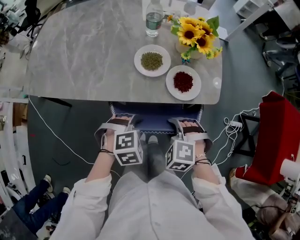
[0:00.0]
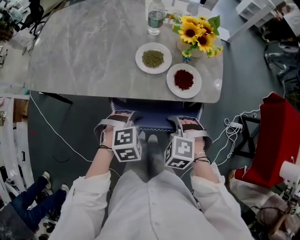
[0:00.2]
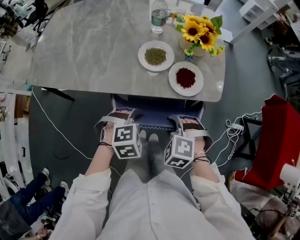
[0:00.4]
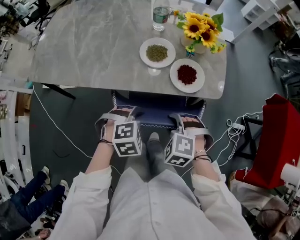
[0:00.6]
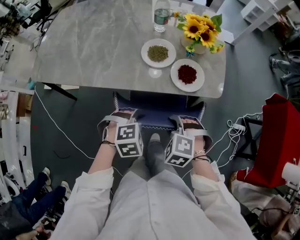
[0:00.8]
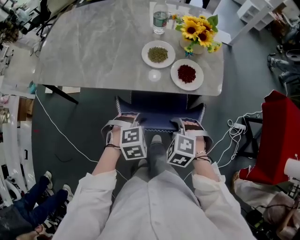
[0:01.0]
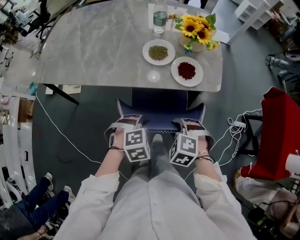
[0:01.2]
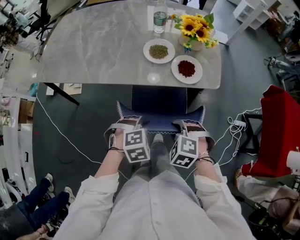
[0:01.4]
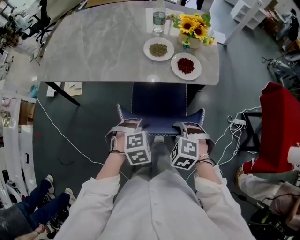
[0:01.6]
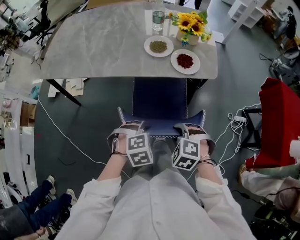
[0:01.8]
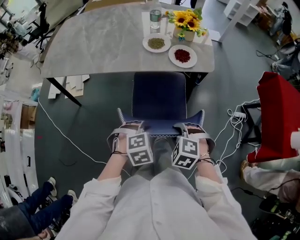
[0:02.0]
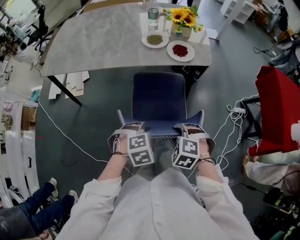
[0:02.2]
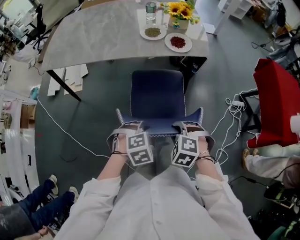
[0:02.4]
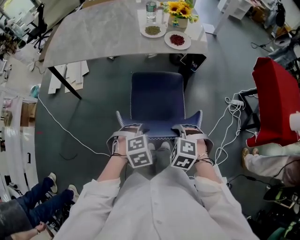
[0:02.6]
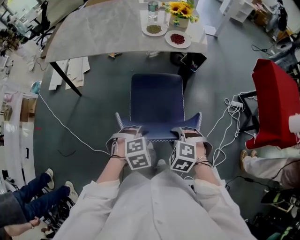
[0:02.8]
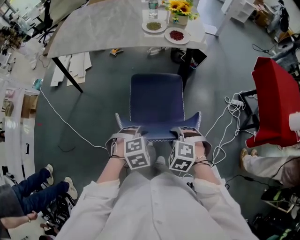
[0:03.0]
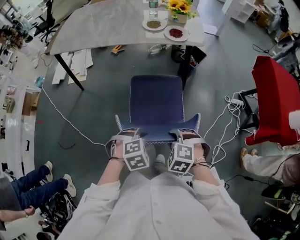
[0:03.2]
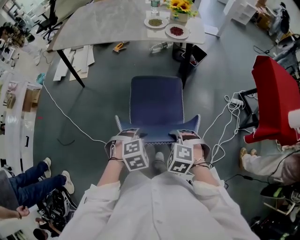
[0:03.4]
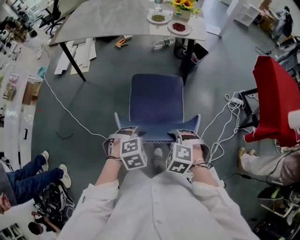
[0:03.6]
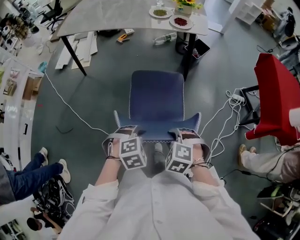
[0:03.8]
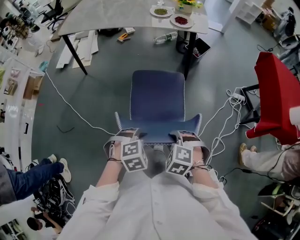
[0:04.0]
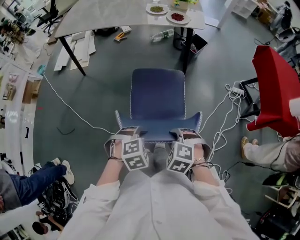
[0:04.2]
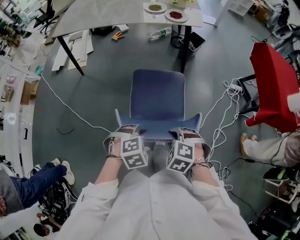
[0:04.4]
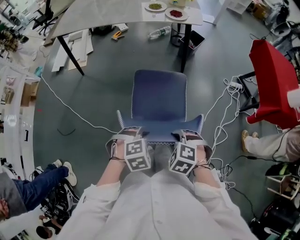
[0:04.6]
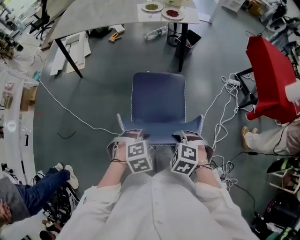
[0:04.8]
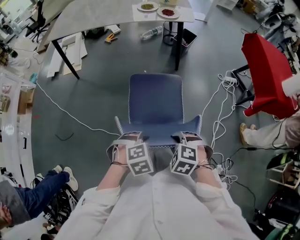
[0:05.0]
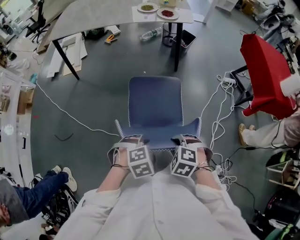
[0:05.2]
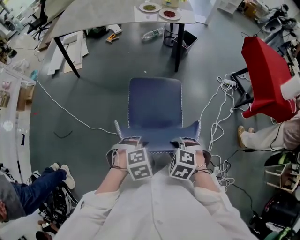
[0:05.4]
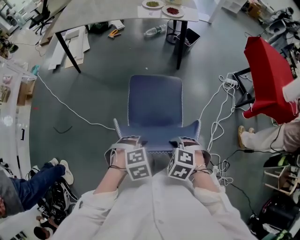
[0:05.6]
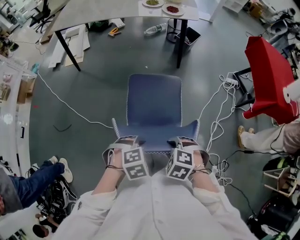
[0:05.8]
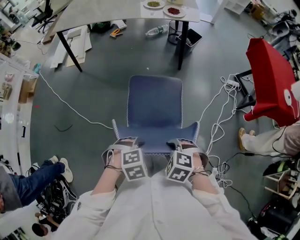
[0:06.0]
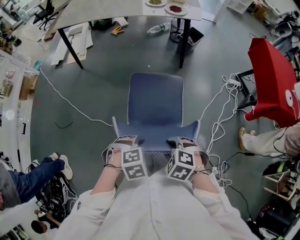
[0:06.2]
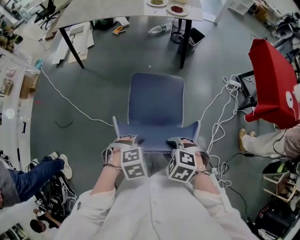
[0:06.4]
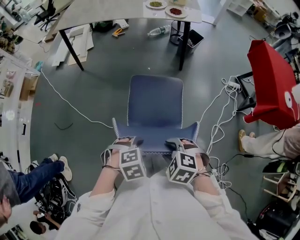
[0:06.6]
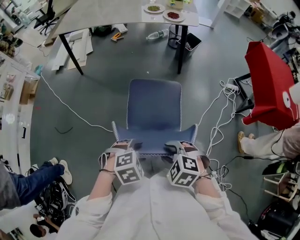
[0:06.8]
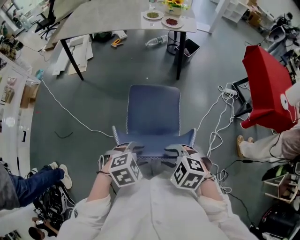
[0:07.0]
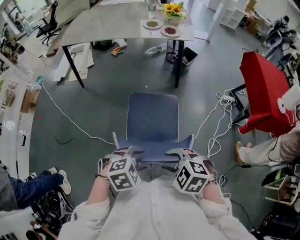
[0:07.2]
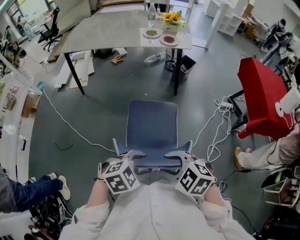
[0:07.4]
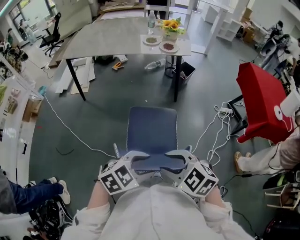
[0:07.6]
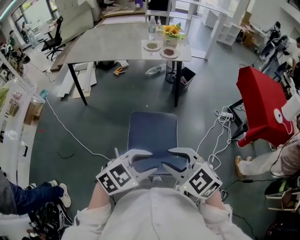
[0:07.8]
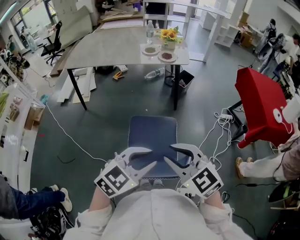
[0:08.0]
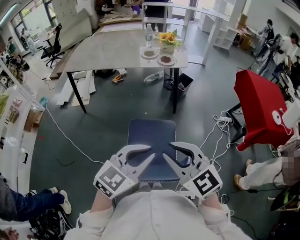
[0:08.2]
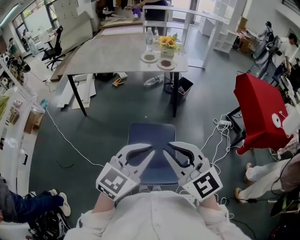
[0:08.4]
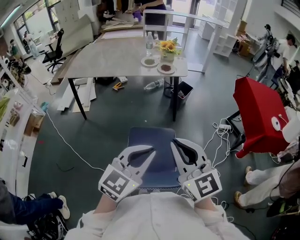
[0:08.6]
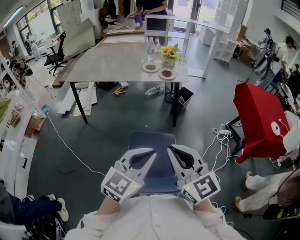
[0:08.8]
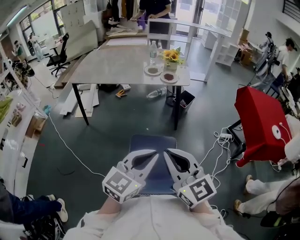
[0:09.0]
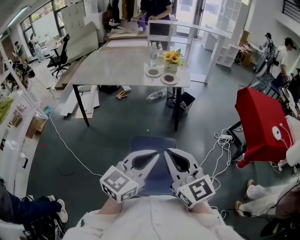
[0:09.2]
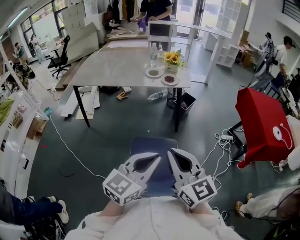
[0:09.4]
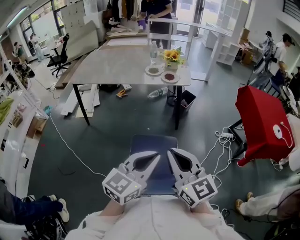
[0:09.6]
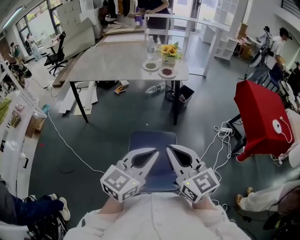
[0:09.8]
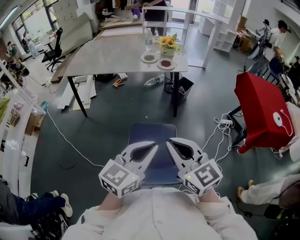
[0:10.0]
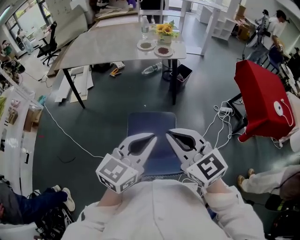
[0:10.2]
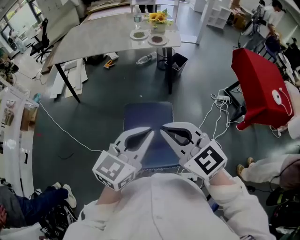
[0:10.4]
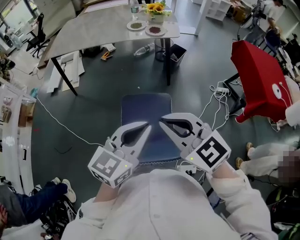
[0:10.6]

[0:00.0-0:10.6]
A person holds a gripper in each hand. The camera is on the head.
0.0 to 1.6 s: The two grippers go about 15 cm backward.
1.6 to 3.0 s: The grippers both shift backward by about 25 cm.
3.0 to 4.6 s: The grippers both shift backward by roughly 20 cm.
4.6 to 6.0 s: The left gripper shifts by about 10 cm. The right gripper changes place by some 10 cm.
6.0 to 7.6 s: Both grippers travel together upward, roughly 15 cm. The left gripper tips its fingers upward by some 30 degrees; the right gripper tips its fingers upward by about 30 degrees.
7.6 to 9.0 s: The grippers both shift upward by roughly 15 cm. The right gripper tips its fingers upward by about 40 degrees, and closes up. Meanwhile the left gripper tips its fingers upward by approximately 30 degrees, and closes.
9.0 to 10.6 s: The right gripper turns by about 20 degrees.

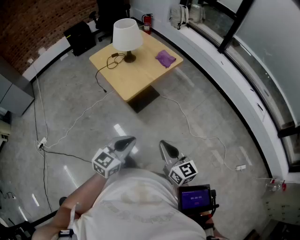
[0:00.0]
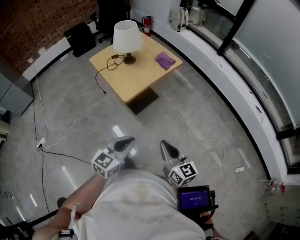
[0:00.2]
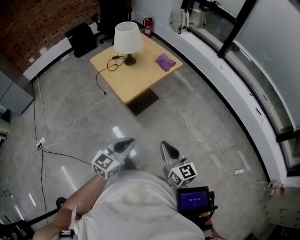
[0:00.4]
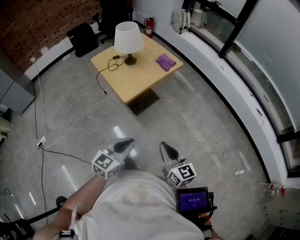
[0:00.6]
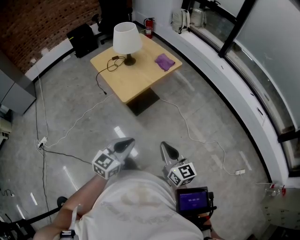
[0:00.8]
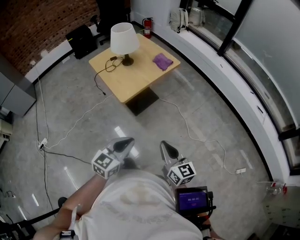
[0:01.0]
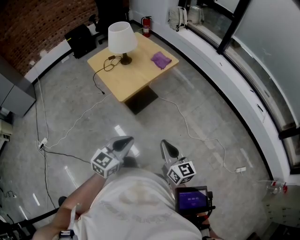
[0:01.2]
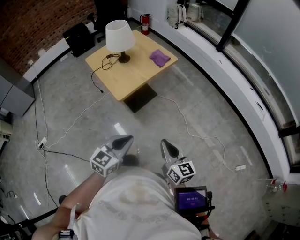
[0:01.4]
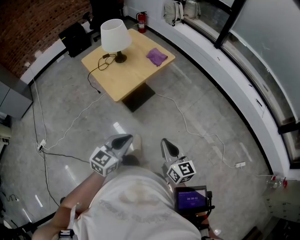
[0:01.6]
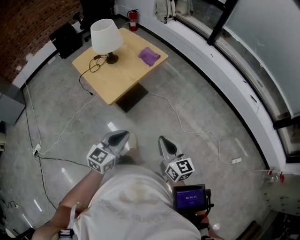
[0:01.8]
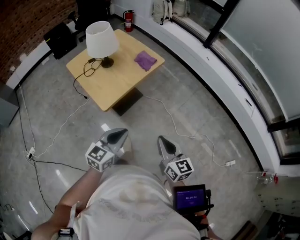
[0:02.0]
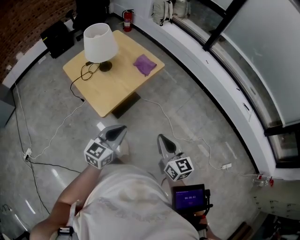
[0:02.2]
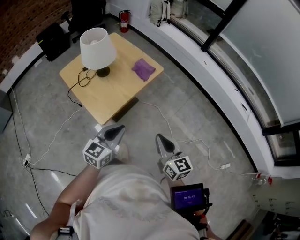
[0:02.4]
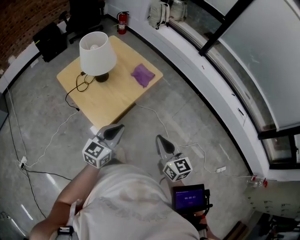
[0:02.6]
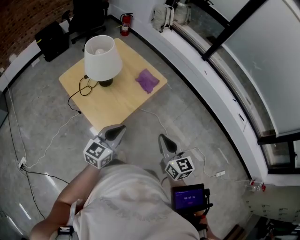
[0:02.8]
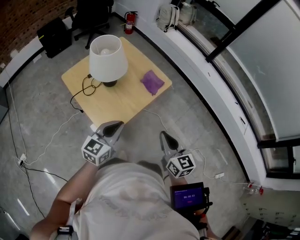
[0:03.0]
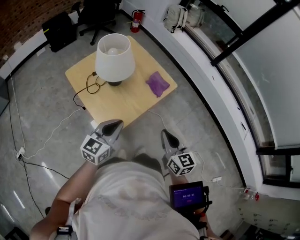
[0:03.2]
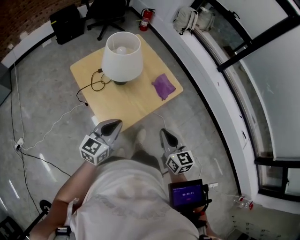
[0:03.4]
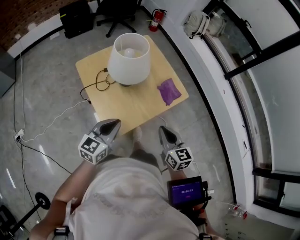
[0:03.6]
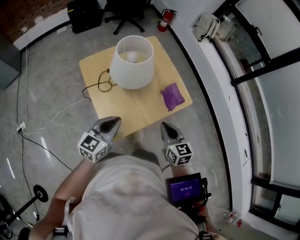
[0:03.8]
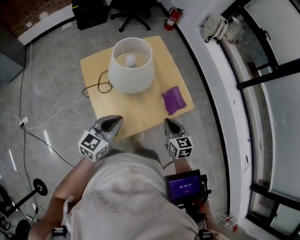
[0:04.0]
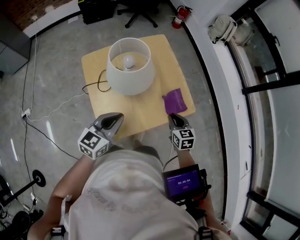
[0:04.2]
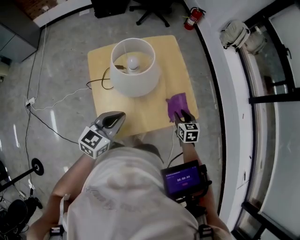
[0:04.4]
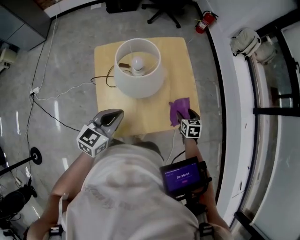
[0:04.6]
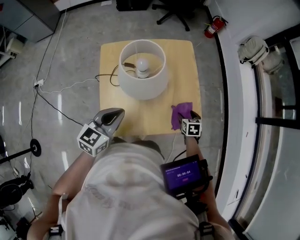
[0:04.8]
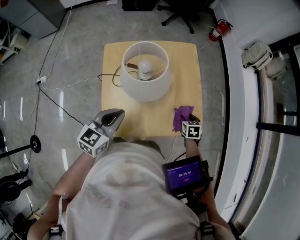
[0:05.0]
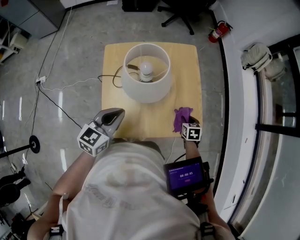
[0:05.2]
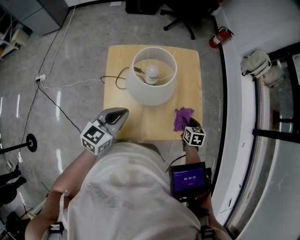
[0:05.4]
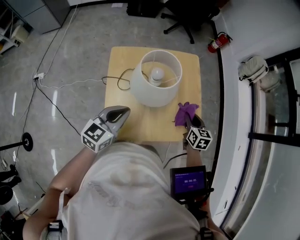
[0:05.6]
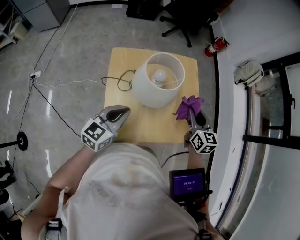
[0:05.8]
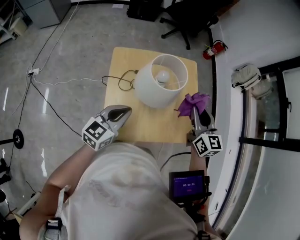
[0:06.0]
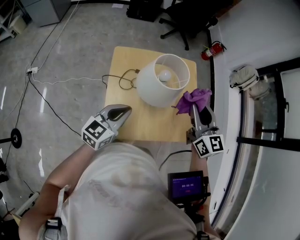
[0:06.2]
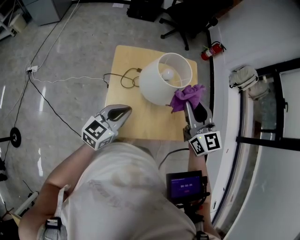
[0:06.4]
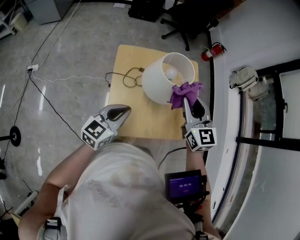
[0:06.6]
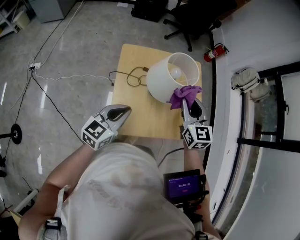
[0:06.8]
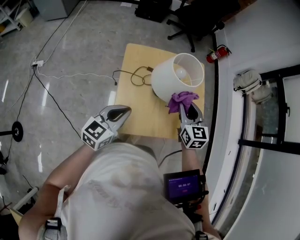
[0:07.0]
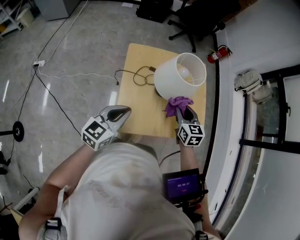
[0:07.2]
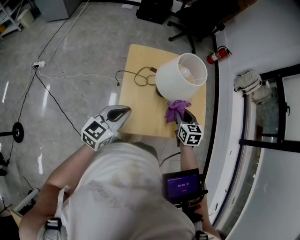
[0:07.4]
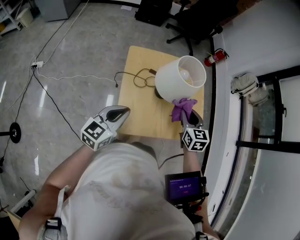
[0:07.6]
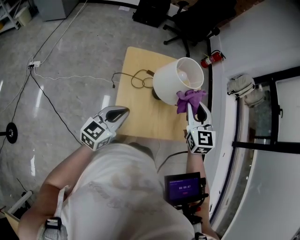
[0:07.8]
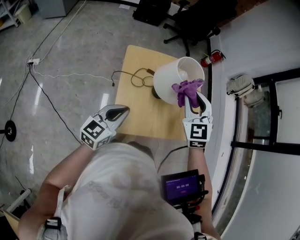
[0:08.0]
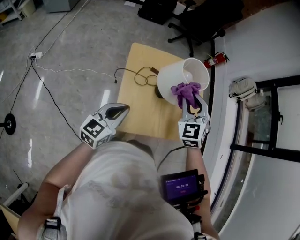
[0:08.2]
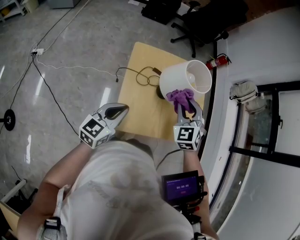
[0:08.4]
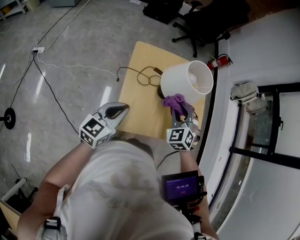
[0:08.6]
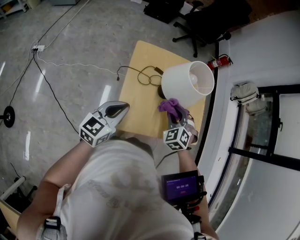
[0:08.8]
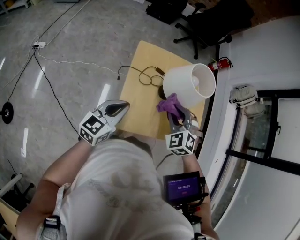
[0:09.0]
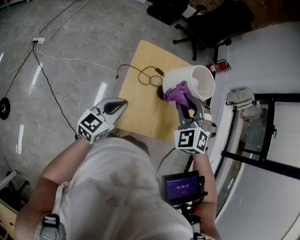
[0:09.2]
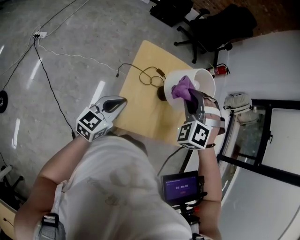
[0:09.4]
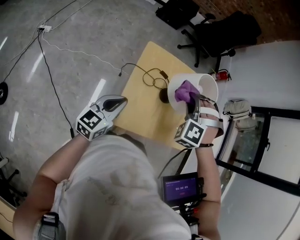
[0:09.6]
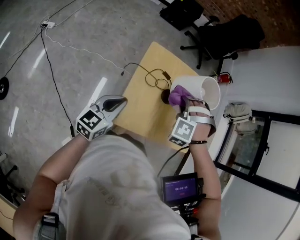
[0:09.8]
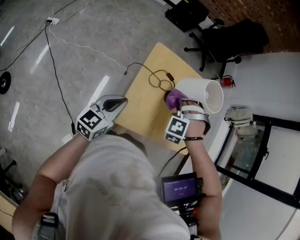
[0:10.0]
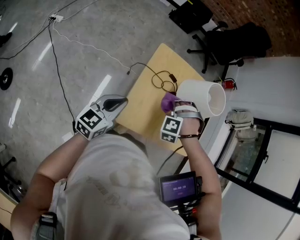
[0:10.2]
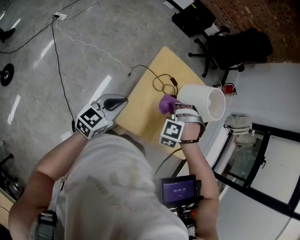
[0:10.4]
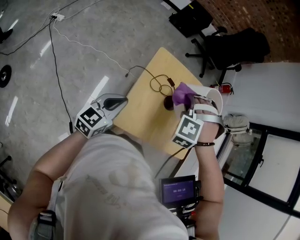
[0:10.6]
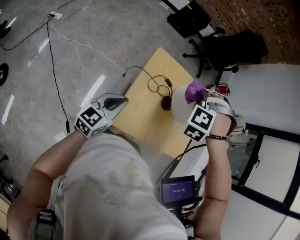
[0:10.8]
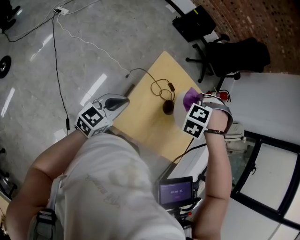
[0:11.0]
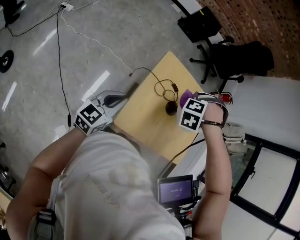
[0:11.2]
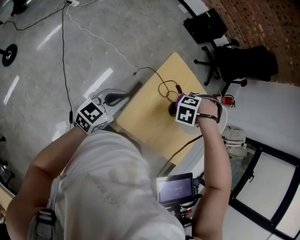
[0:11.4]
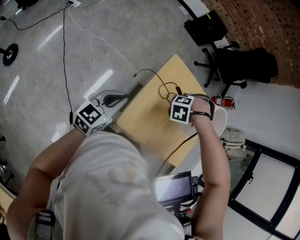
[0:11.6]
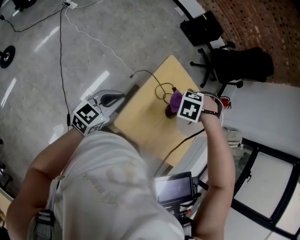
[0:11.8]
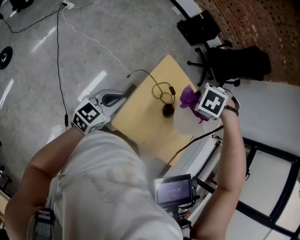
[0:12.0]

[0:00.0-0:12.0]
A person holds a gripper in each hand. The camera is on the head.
0.0 to 1.6 s: The right gripper heads to the right, covering about 5 cm.
1.6 to 3.0 s: Both grippers travel together forward, approximately 30 cm.
3.0 to 4.4 s: The left gripper shifts approximately 15 cm forward, and swivels approximately 30 degrees. Meanwhile the right gripper travels forward and downward by some 40 cm, points its fingers roughly 30 degrees further downward, and opens its fingers.
4.4 to 6.0 s: The left gripper goes some 5 cm to the left, while the right gripper shifts roughly 25 cm upward and to the left, tilts its fingers approximately 30 degrees upward, and opens, then closes again.
6.0 to 7.6 s: The left gripper goes roughly 10 cm to the left and backward; the right gripper moves up and down over some 20 cm, changing direction 2 times, and swivels approximately 20 degrees.
7.6 to 9.0 s: The right gripper moves up and down over about 20 cm, changing direction 2 times, and rotates around the line of its fingers by some 60 degrees, counterclockwise from behind.
9.0 to 10.4 s: Both grippers move to the left, approximately 5 cm. The right gripper travels upward and back again, some 10 cm each way, and twists roughly 50 degrees counterclockwise, seen from behind.
10.4 to 12.0 s: The right gripper goes up and down, some 15 cm each way, reversing 2 times, and swivels about 30 degrees.

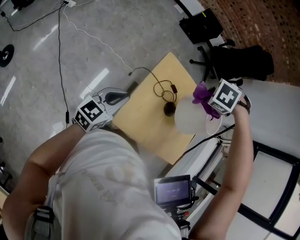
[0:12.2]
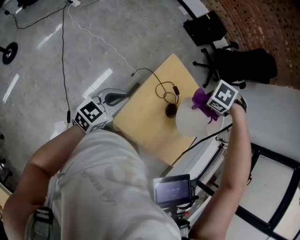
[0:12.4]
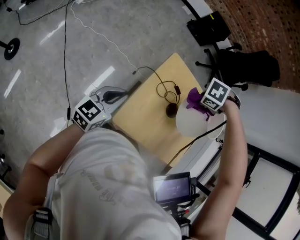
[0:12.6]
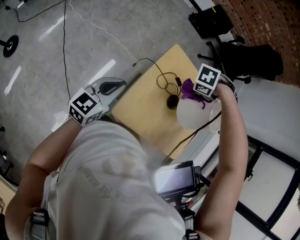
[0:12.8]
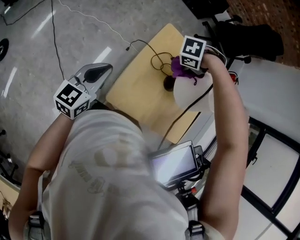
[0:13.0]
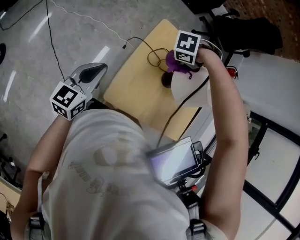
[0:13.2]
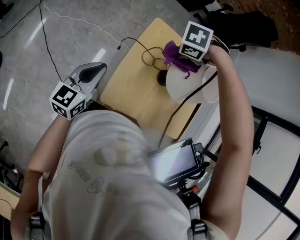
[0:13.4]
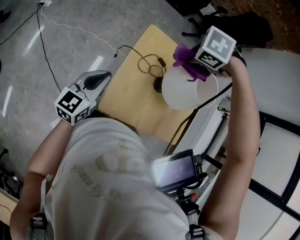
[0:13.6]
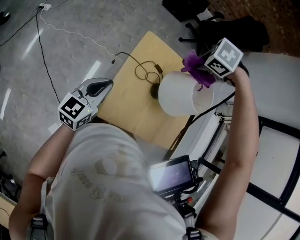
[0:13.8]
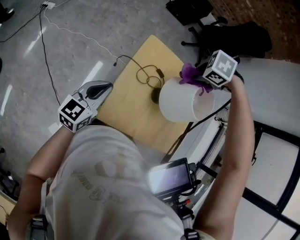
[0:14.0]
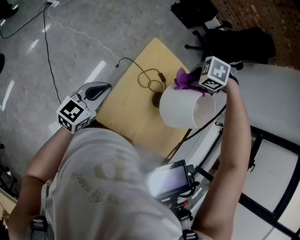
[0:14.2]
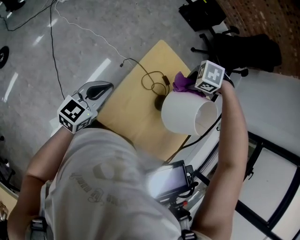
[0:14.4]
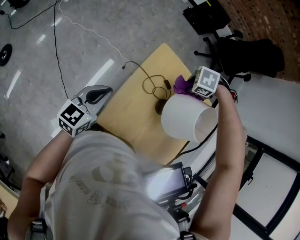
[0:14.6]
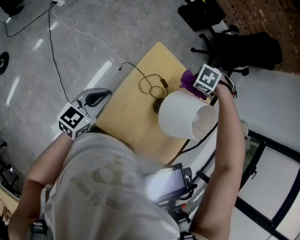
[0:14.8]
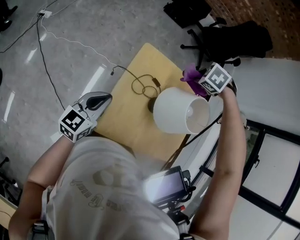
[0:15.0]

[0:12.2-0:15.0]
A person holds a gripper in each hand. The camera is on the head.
12.2 to 13.6 s: The right gripper moves approximately 15 cm downward and comes back.
13.6 to 15.0 s: The right gripper changes place by approximately 15 cm.
